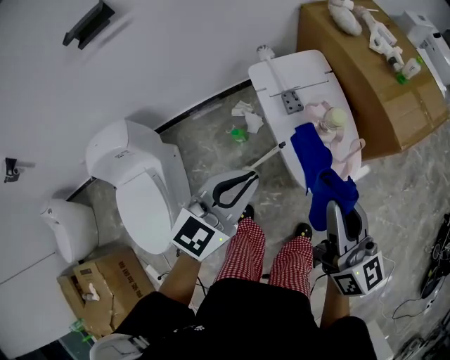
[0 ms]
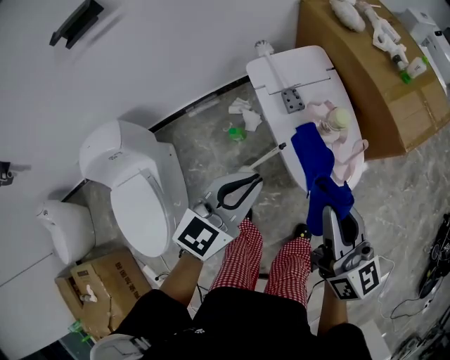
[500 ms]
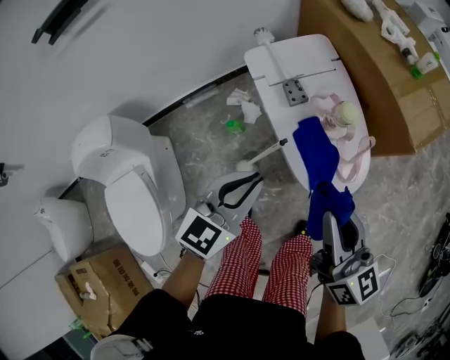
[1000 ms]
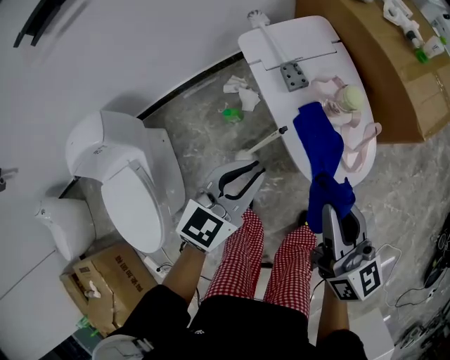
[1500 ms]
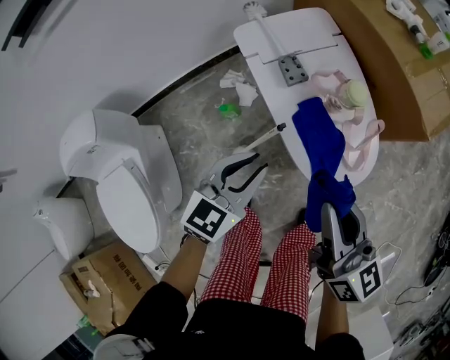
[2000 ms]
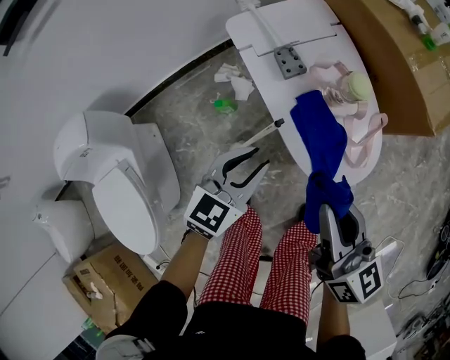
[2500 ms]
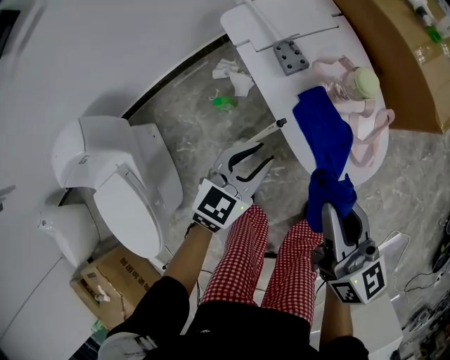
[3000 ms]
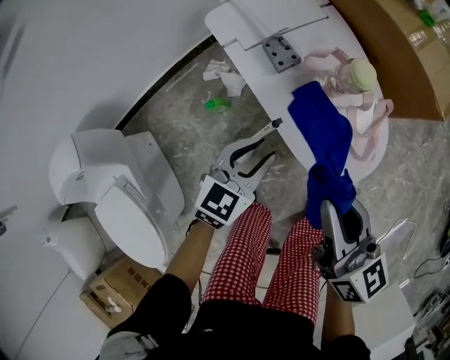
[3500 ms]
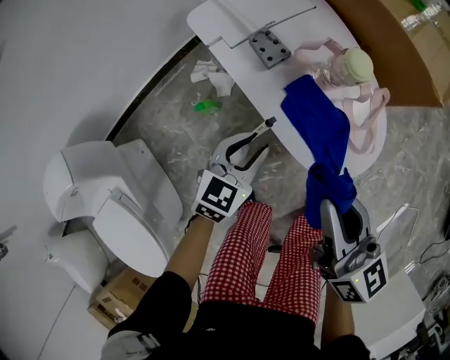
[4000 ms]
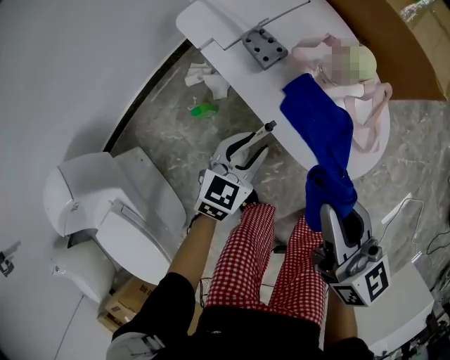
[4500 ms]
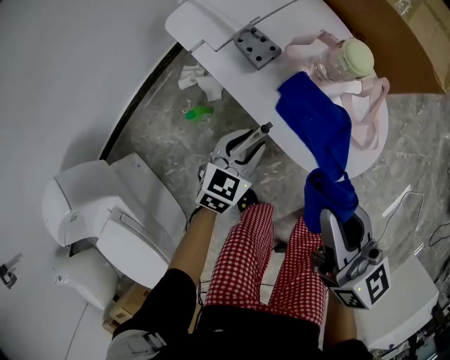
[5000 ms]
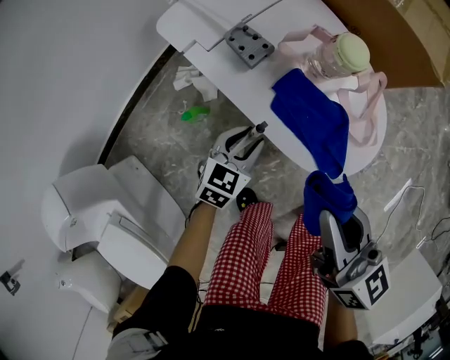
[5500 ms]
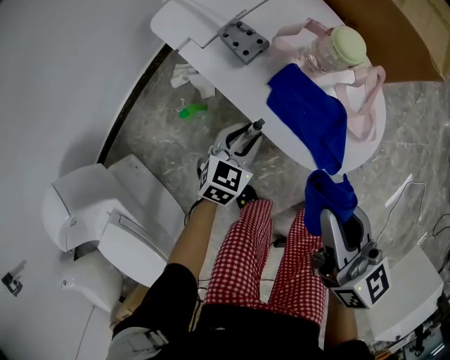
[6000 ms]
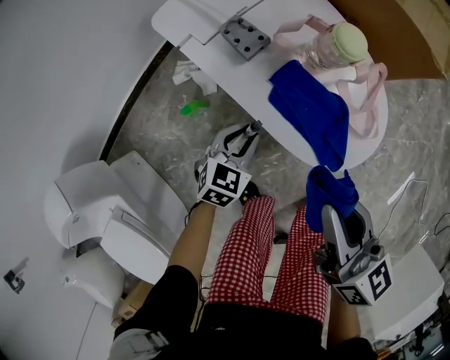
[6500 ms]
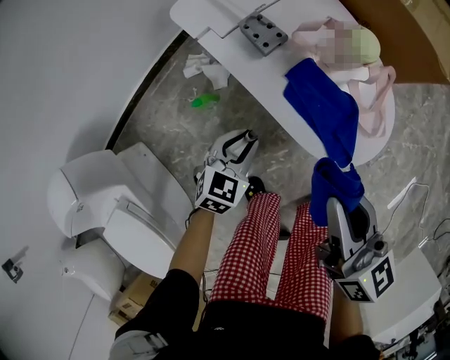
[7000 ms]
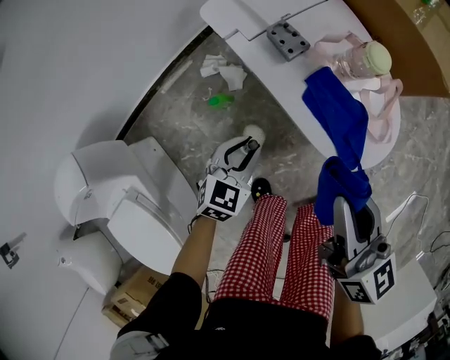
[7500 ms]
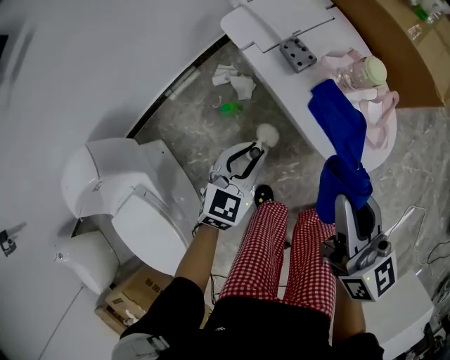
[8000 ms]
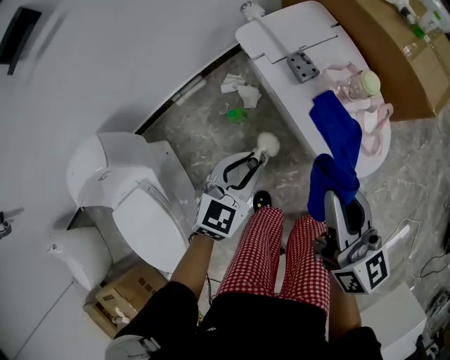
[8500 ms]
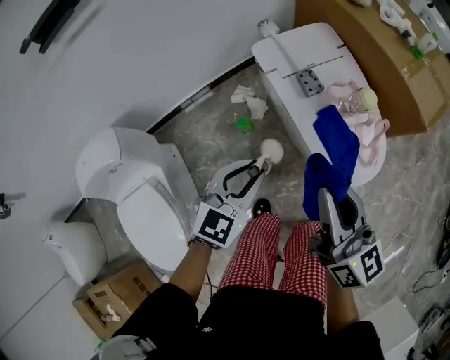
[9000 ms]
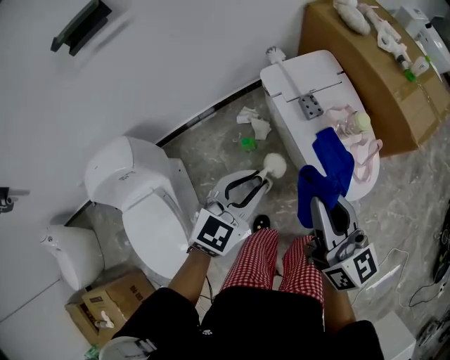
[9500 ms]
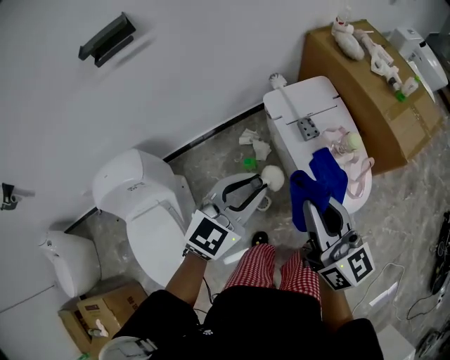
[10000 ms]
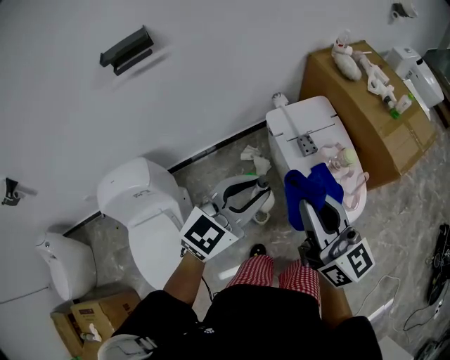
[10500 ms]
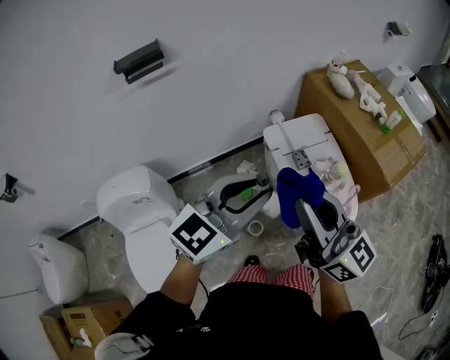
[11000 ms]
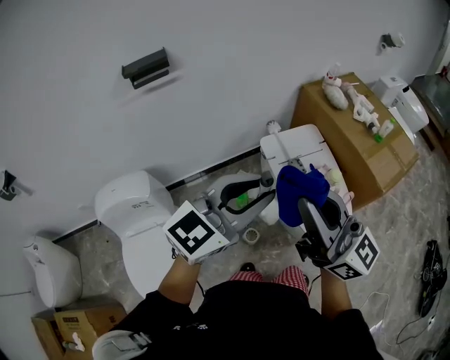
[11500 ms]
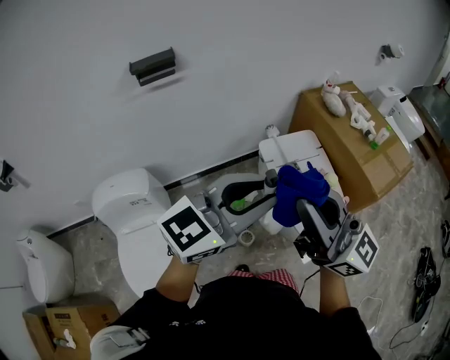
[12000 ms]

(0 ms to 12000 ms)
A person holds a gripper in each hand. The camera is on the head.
0 ms - 2000 ms: Both grippers move downward, some 15 cm.
2000 ms - 4000 ms: The left gripper goes approximately 15 cm downward. The right gripper goes approximately 10 cm downward.
4000 ms - 6000 ms: The left gripper moves downward, some 10 cm.
6000 ms - 8000 ms: The right gripper shifts about 10 cm upward and to the left. The left gripper shifts roughly 20 cm upward, to the left and backward.
8000 ms - 10000 ms: The right gripper goes approximately 20 cm upward and to the left. Meanwhile the left gripper travels upward by about 30 cm.
10000 ms - 12000 ms: Both grippers travel together upward, some 20 cm. The right gripper rotates some 30 degrees. The left gripper changes its angle by roughly 20 degrees.

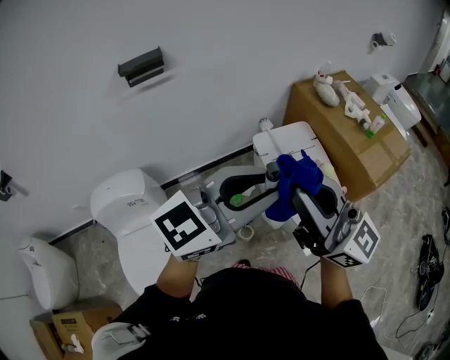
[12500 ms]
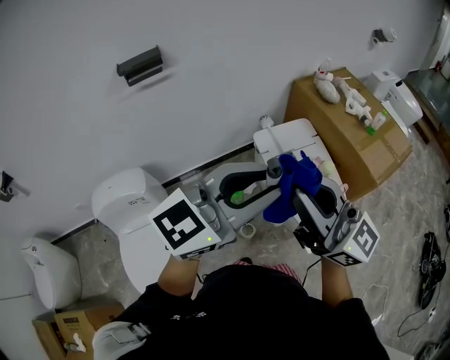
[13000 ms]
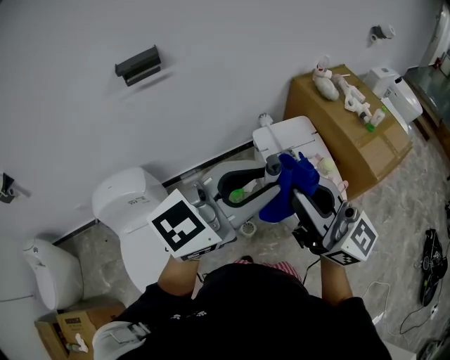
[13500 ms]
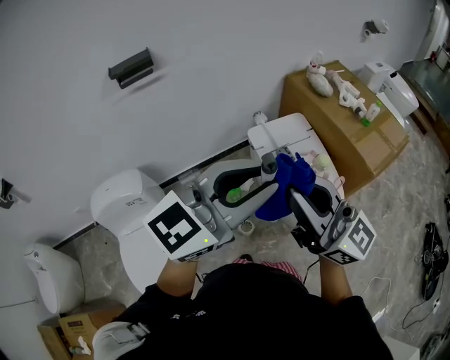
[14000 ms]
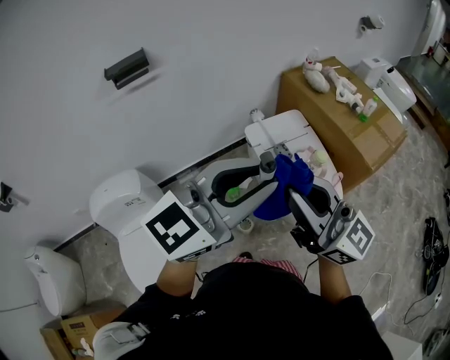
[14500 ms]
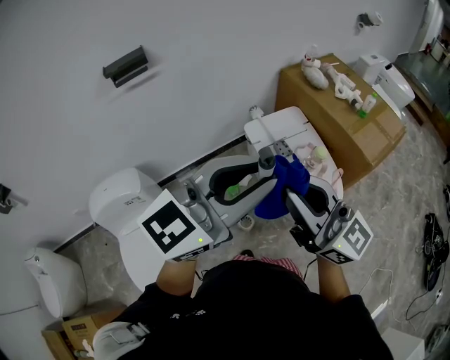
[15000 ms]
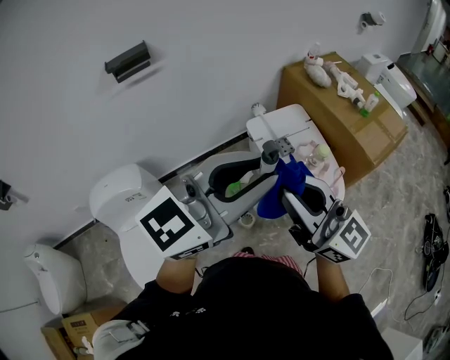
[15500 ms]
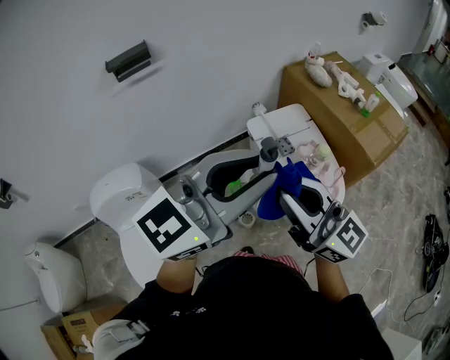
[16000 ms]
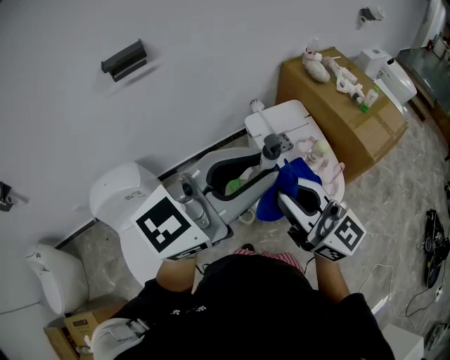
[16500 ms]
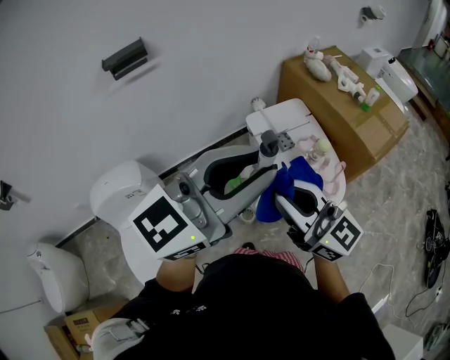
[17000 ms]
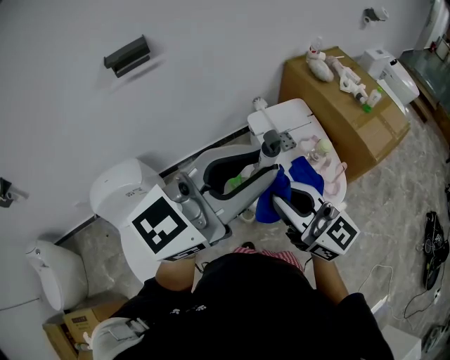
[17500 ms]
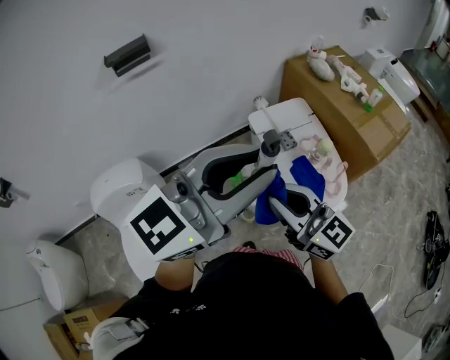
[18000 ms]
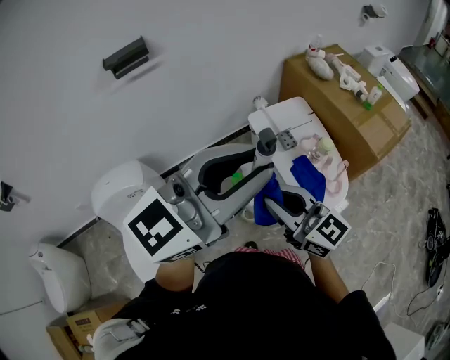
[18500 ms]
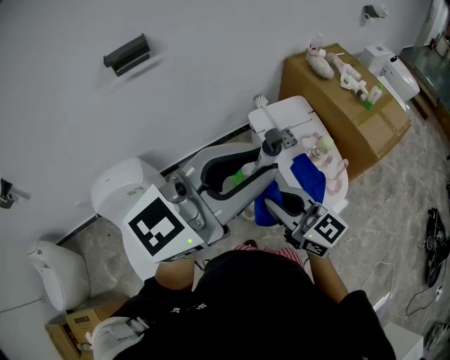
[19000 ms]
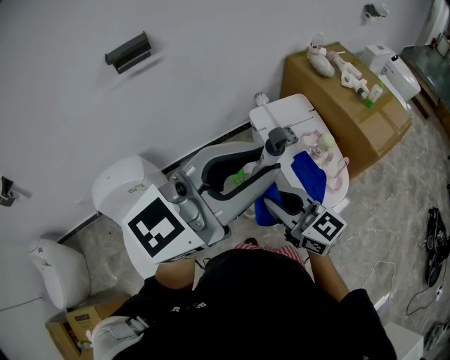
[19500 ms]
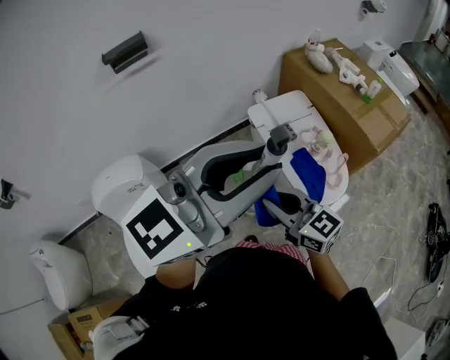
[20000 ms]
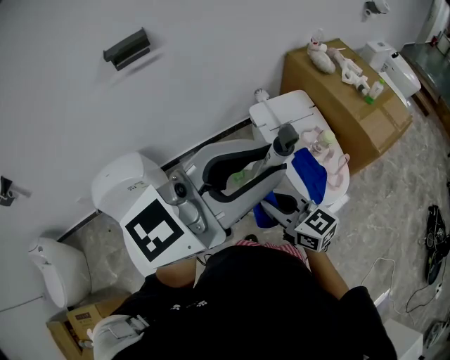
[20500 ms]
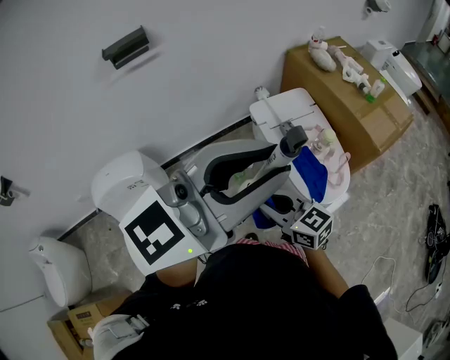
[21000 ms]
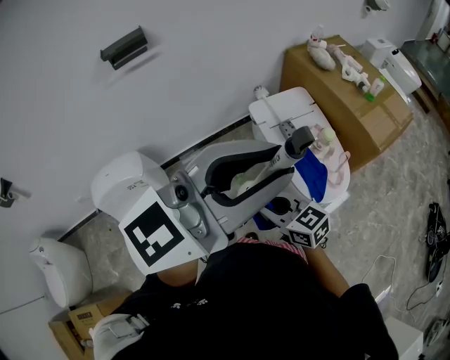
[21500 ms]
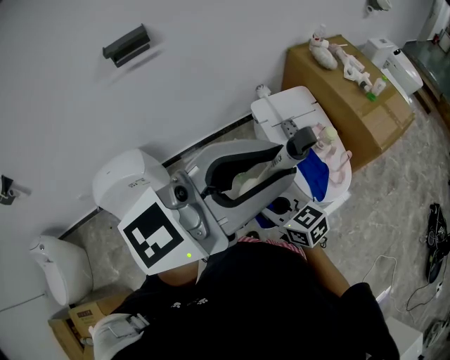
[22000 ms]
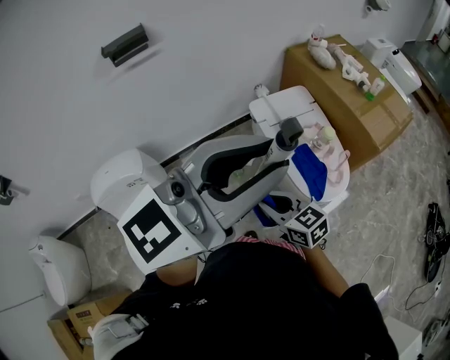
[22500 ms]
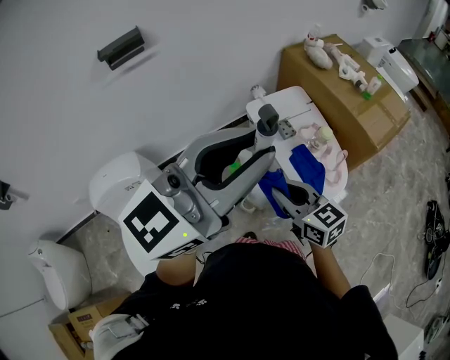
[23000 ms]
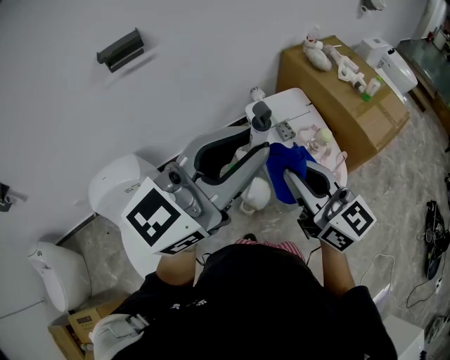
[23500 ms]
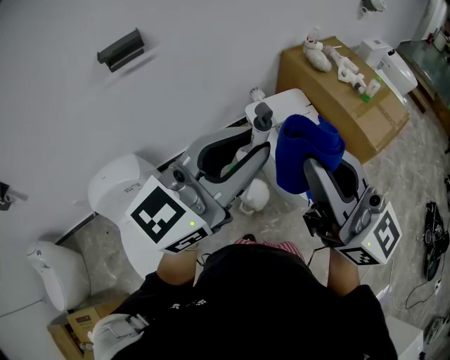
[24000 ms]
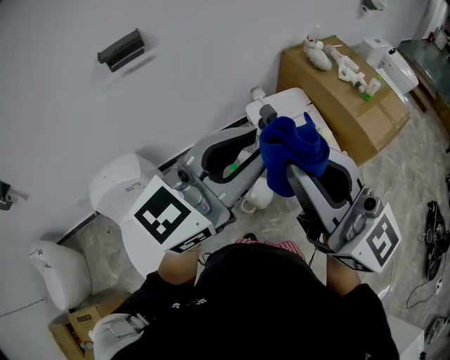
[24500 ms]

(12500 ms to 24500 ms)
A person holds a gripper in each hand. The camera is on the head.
12500 ms - 14500 ms: The grippers make only small movements.
14500 ms - 16500 ms: The right gripper is displaced downward by about 5 cm.
16500 ms - 18500 ms: The right gripper is displaced downward by about 10 cm.
18500 ms - 20500 ms: The right gripper shifts approximately 10 cm downward.
20500 ms - 22500 ms: The right gripper goes about 5 cm downward.
22500 ms - 24500 ms: The right gripper travels upward by roughly 35 cm, and points its fingers approximately 40 degrees further upward.

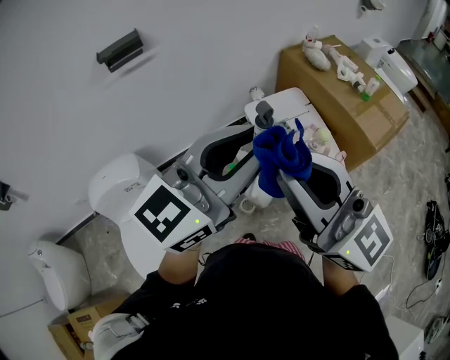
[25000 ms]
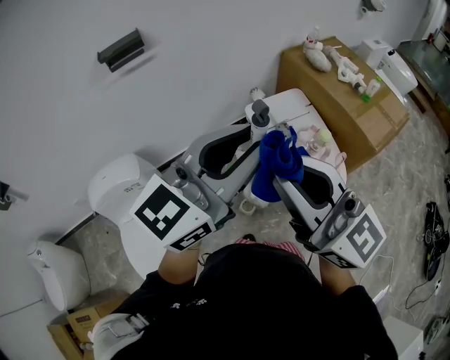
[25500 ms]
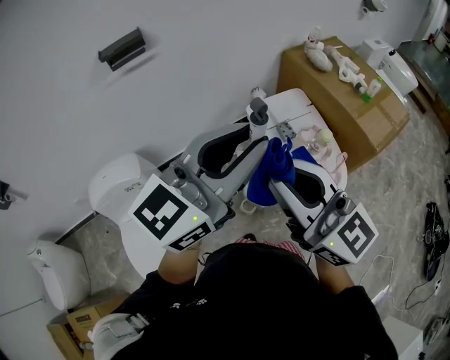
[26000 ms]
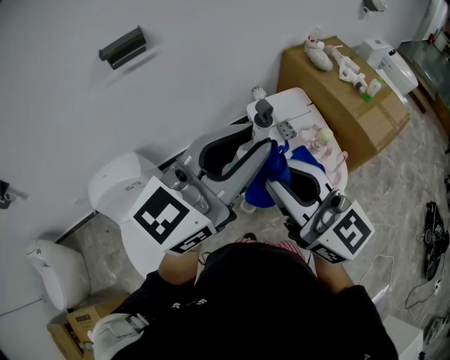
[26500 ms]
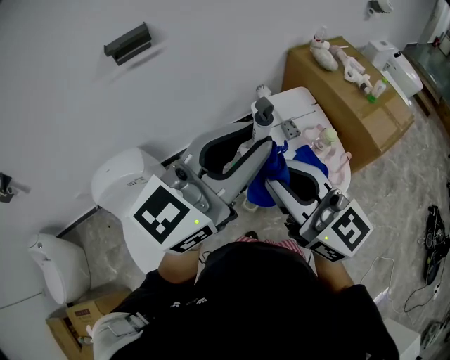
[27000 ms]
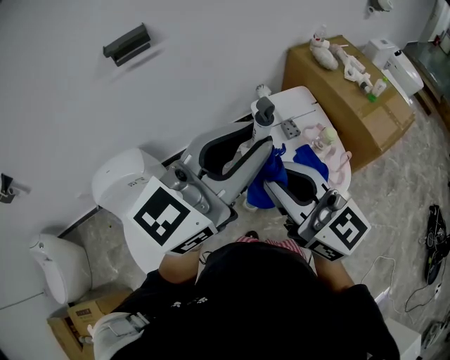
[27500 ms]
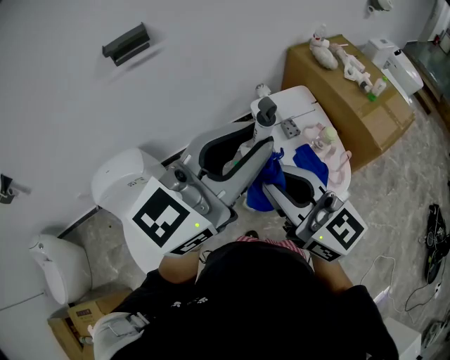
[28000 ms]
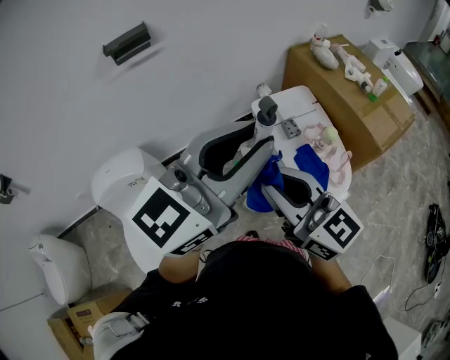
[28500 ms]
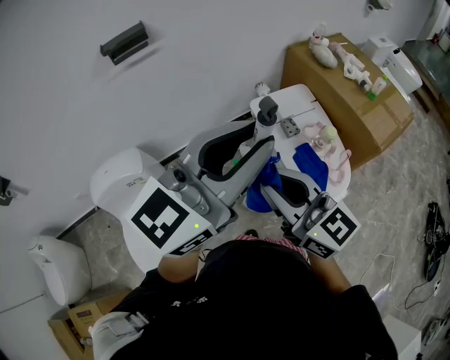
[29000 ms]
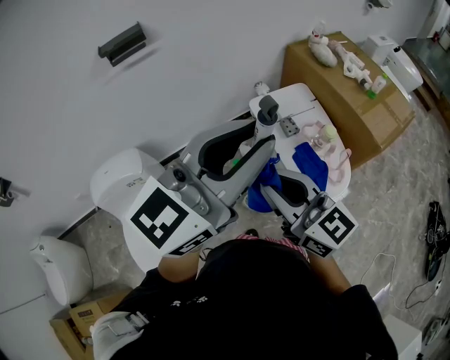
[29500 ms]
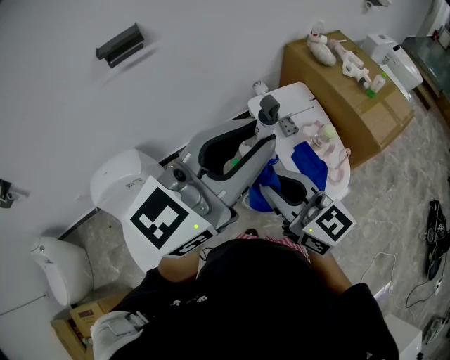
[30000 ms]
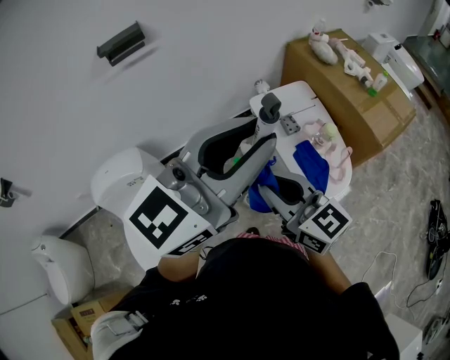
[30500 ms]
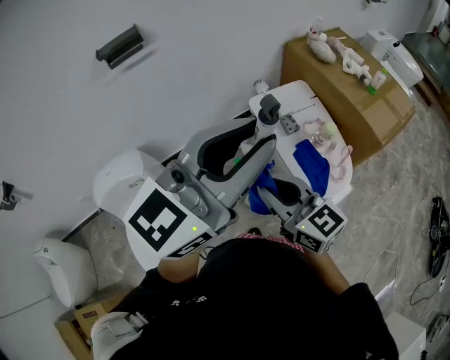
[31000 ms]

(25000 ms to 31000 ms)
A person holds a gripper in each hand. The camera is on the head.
25000 ms - 27000 ms: The right gripper heads downward, covering some 5 cm.
27000 ms - 29000 ms: The right gripper goes approximately 5 cm downward.
29000 ms - 31000 ms: The right gripper travels downward by some 5 cm.
